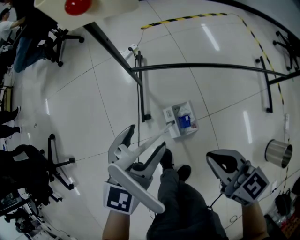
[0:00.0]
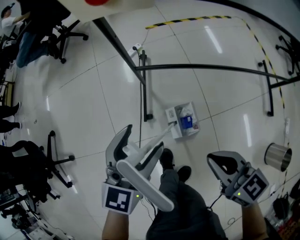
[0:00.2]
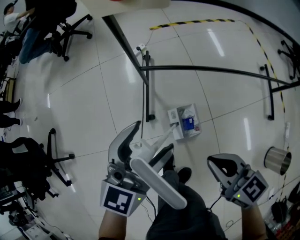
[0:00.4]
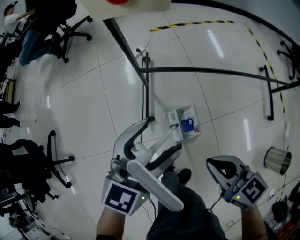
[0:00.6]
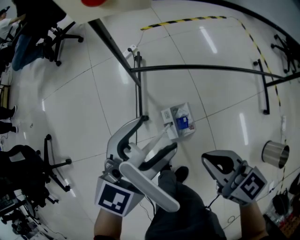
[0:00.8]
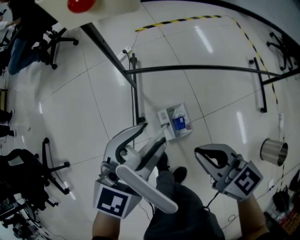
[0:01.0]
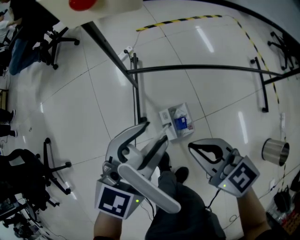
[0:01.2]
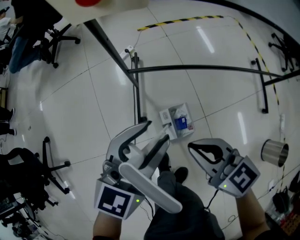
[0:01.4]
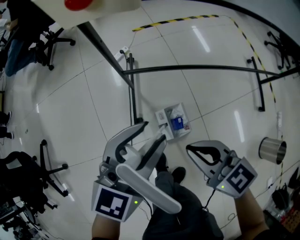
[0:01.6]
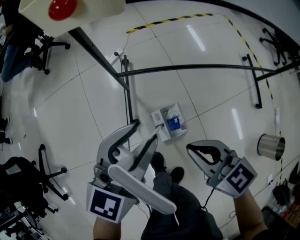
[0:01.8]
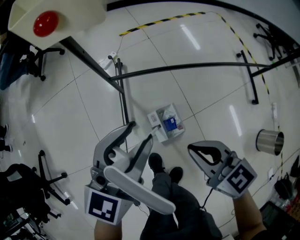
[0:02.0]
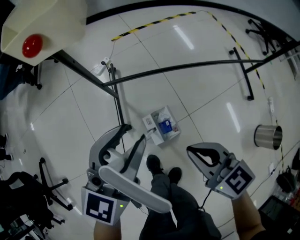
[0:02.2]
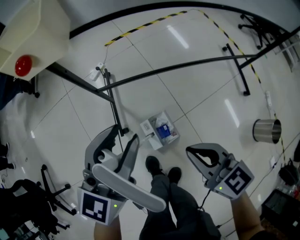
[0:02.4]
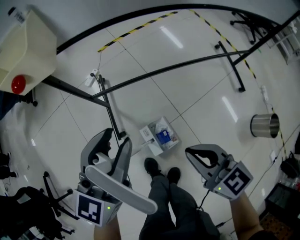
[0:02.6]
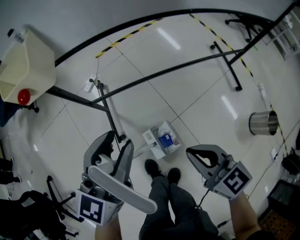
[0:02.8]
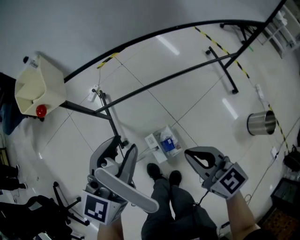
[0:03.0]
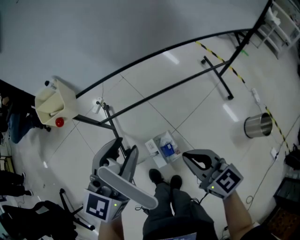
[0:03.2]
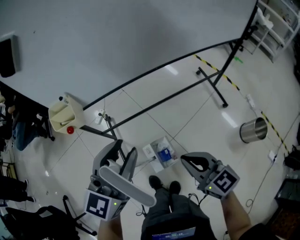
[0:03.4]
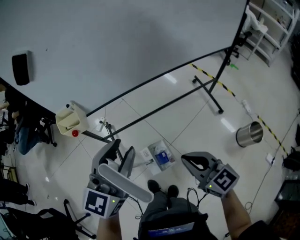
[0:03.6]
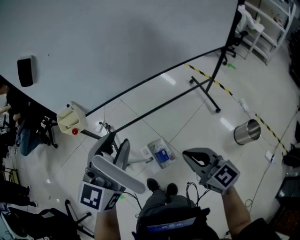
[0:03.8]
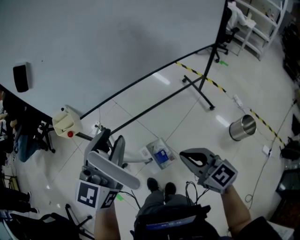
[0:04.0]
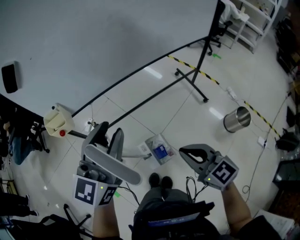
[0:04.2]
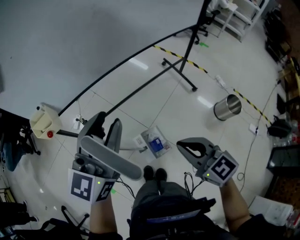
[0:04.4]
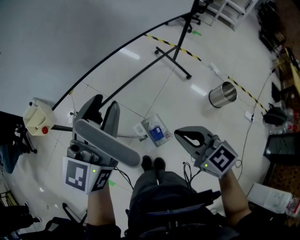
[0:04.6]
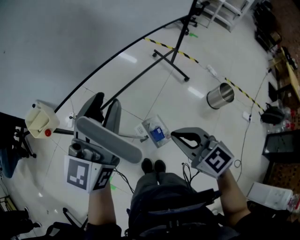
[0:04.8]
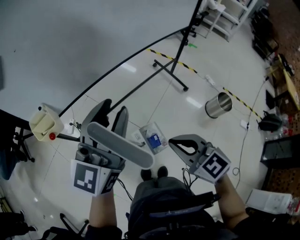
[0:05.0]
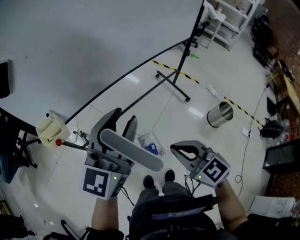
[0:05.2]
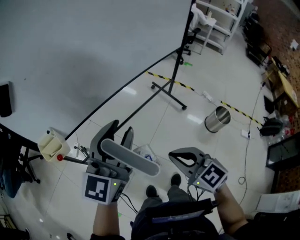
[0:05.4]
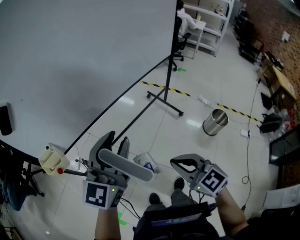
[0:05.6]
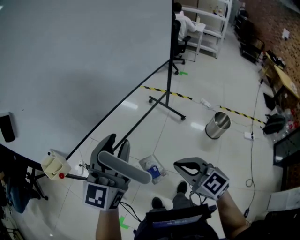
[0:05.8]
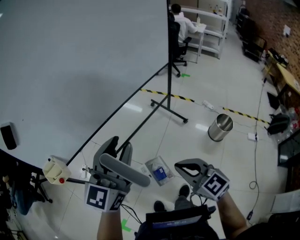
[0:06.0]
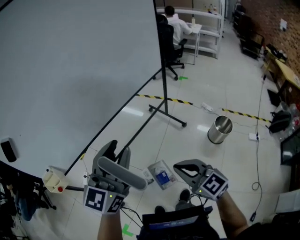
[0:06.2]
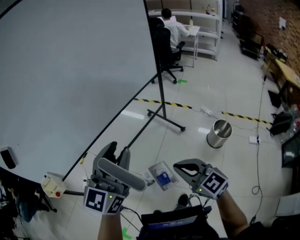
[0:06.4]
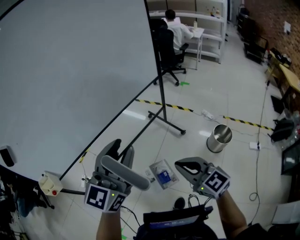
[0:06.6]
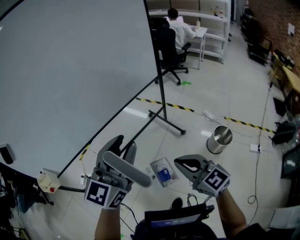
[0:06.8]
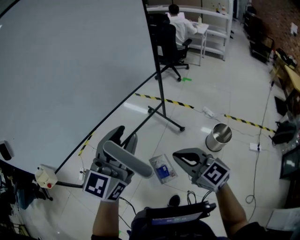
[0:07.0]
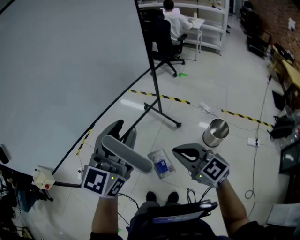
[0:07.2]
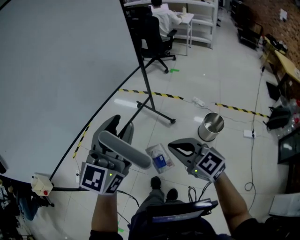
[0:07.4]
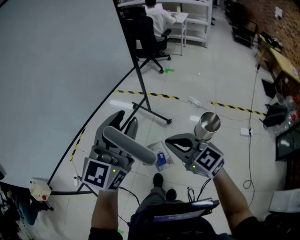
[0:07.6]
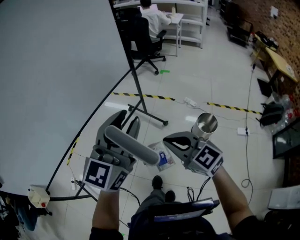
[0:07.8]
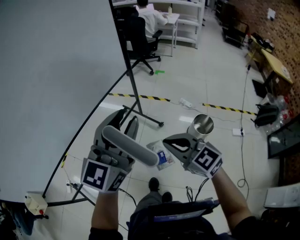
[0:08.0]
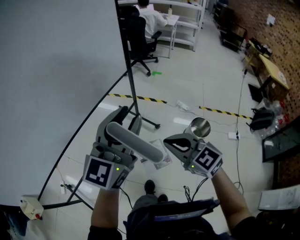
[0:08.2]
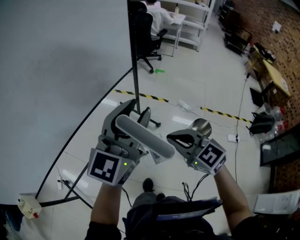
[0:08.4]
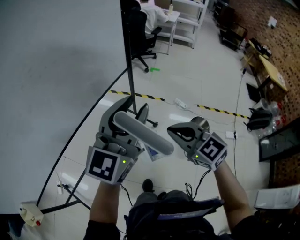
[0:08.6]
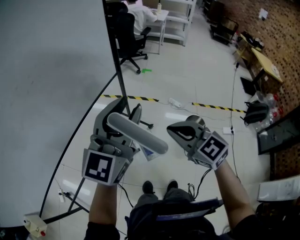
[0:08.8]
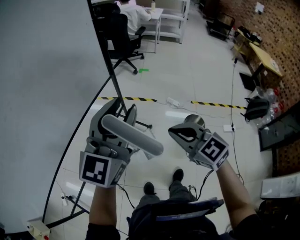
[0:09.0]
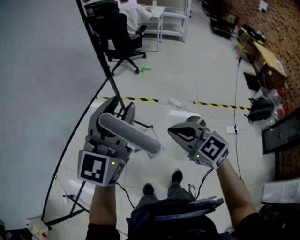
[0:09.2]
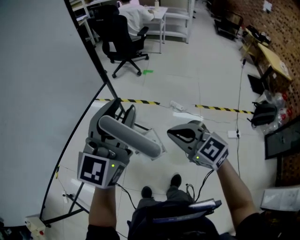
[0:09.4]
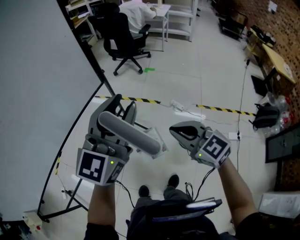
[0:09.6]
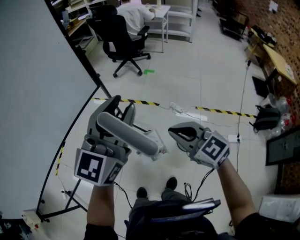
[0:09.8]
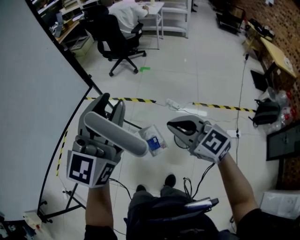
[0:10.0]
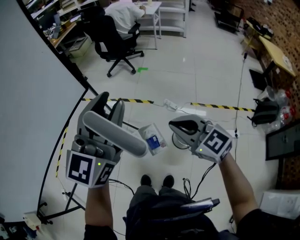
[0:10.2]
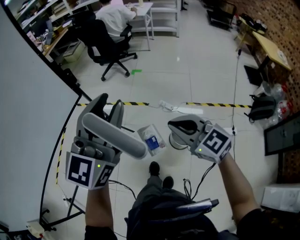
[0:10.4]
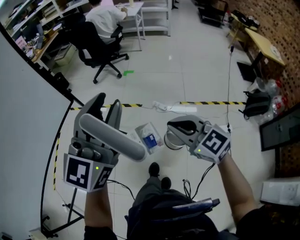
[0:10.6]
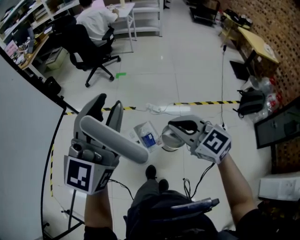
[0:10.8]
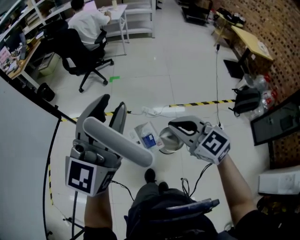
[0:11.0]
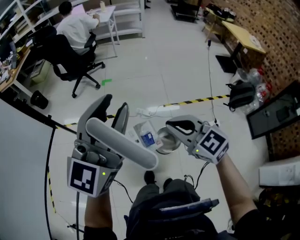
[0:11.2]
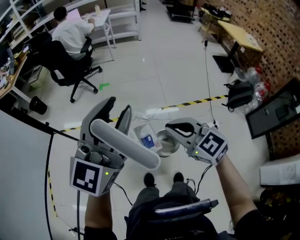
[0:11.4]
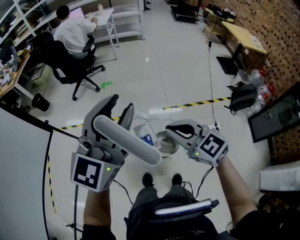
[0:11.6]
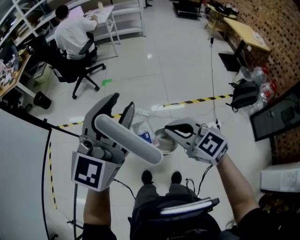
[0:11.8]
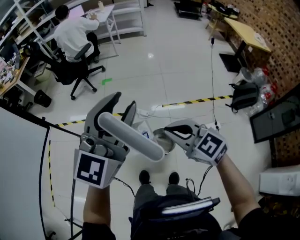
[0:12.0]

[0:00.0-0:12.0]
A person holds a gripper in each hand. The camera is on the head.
0:00.0 to 0:01.6: The right gripper shifts by about 5 cm; the left gripper closes its fingers.
0:01.6 to 0:03.0: The left gripper shifts roughly 15 cm upward and to the right; the right gripper travels to the right and upward by some 15 cm, and swivels approximately 20 degrees.
0:03.0 to 0:04.4: The grippers both shift upward and to the right by about 25 cm.
0:04.4 to 0:06.0: The right gripper travels to the right by approximately 5 cm, while the left gripper goes approximately 10 cm to the right and upward.
0:06.0 to 0:07.6: The right gripper goes some 25 cm to the right and forward. Meanwhile the left gripper shifts approximately 30 cm to the right.
0:07.6 to 0:09.0: Both grippers travel together forward, about 15 cm.
0:09.0 to 0:10.4: The two grippers go approximately 25 cm to the right.
0:10.4 to 0:12.0: The right gripper travels to the right by approximately 15 cm. The left gripper travels to the right and forward by some 25 cm.

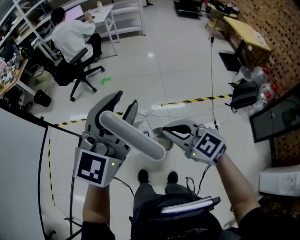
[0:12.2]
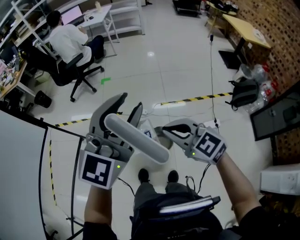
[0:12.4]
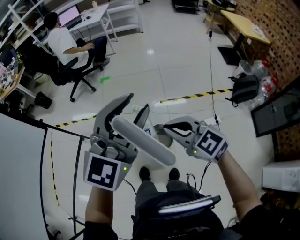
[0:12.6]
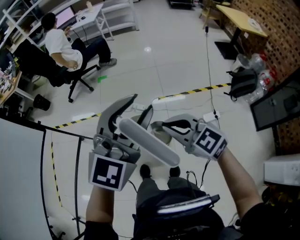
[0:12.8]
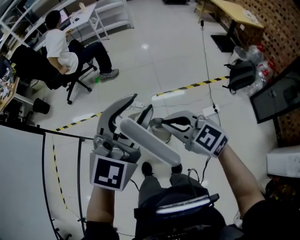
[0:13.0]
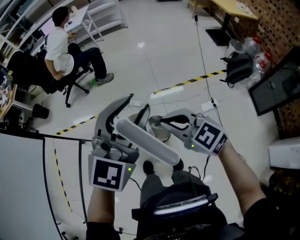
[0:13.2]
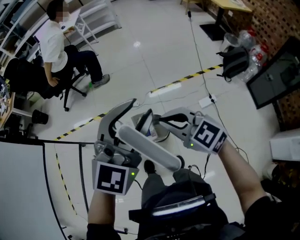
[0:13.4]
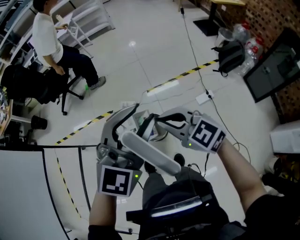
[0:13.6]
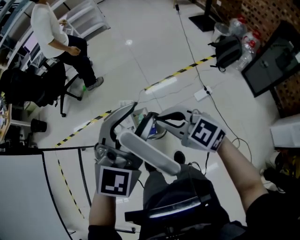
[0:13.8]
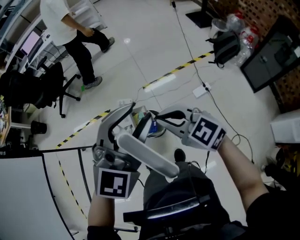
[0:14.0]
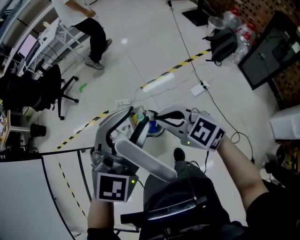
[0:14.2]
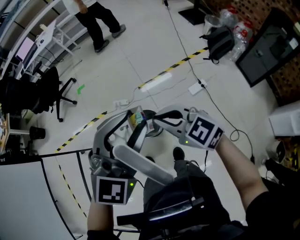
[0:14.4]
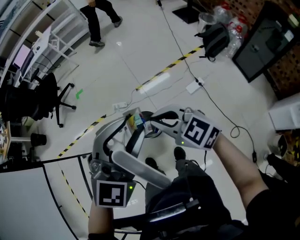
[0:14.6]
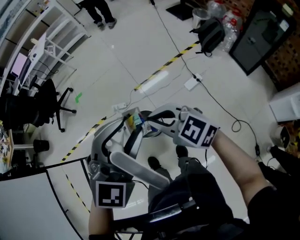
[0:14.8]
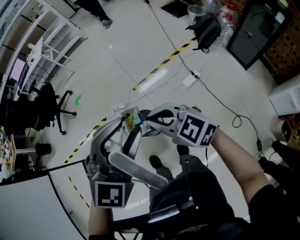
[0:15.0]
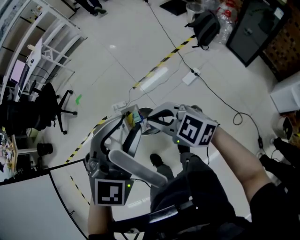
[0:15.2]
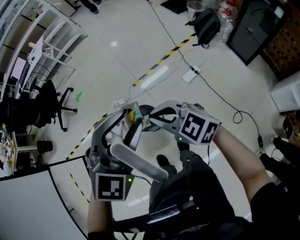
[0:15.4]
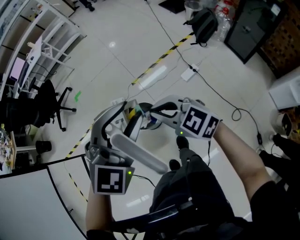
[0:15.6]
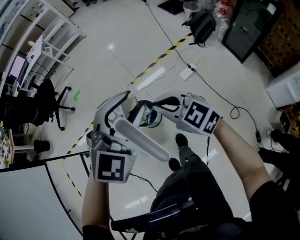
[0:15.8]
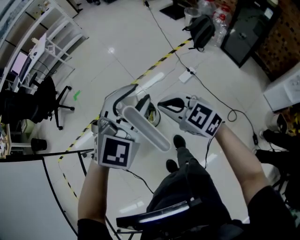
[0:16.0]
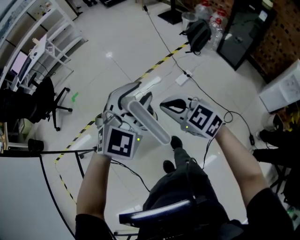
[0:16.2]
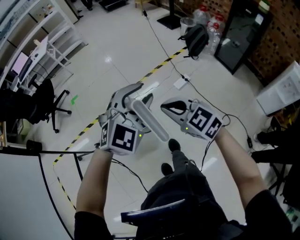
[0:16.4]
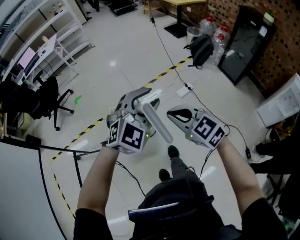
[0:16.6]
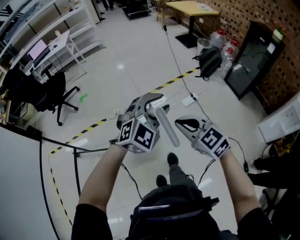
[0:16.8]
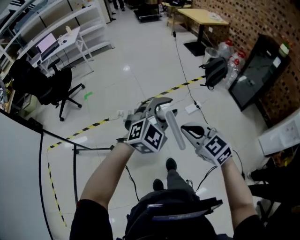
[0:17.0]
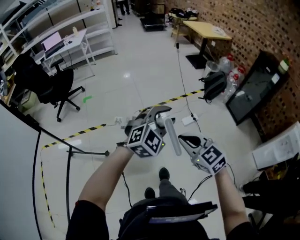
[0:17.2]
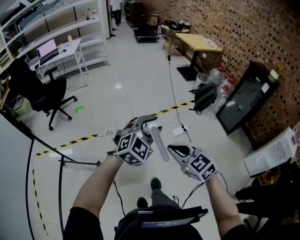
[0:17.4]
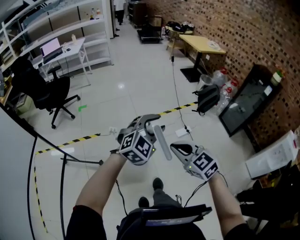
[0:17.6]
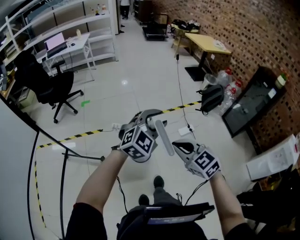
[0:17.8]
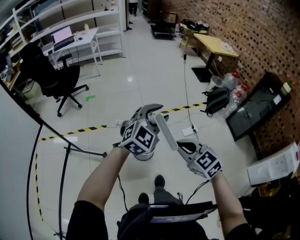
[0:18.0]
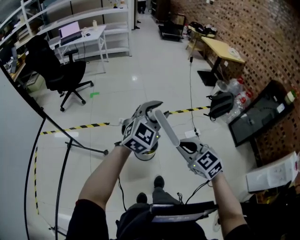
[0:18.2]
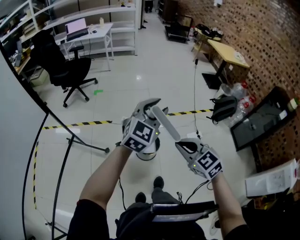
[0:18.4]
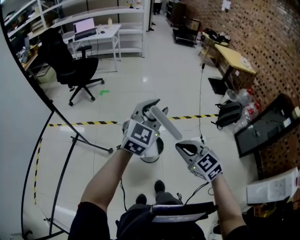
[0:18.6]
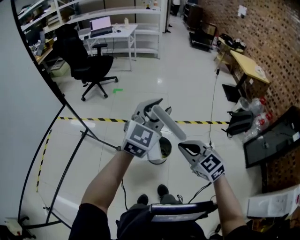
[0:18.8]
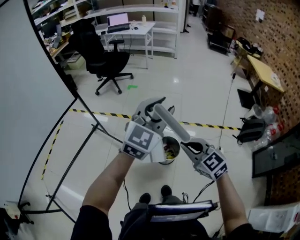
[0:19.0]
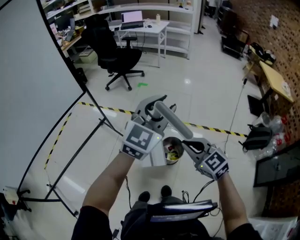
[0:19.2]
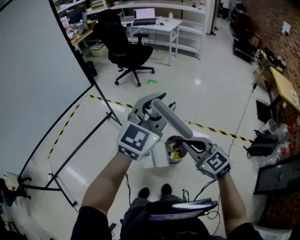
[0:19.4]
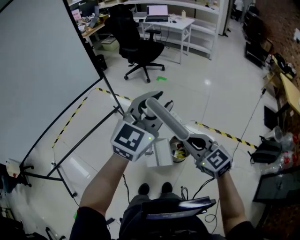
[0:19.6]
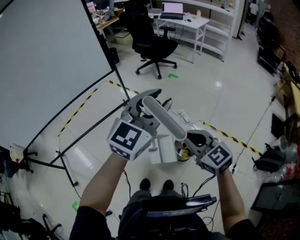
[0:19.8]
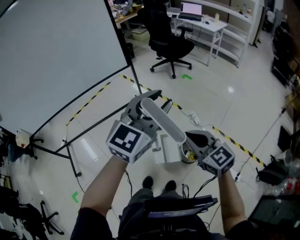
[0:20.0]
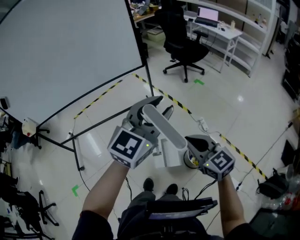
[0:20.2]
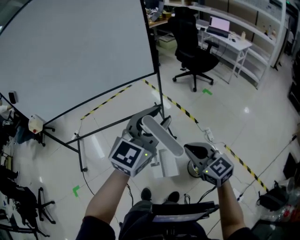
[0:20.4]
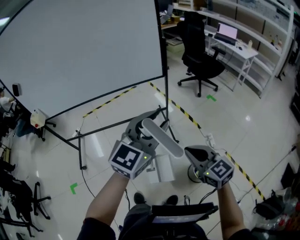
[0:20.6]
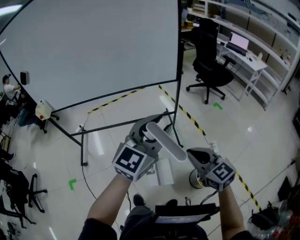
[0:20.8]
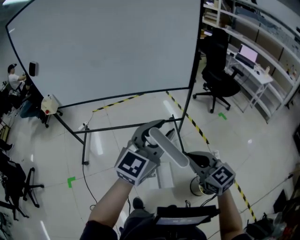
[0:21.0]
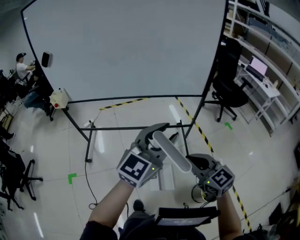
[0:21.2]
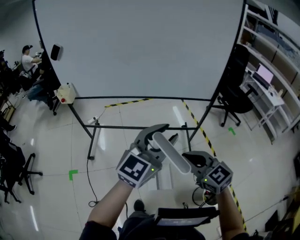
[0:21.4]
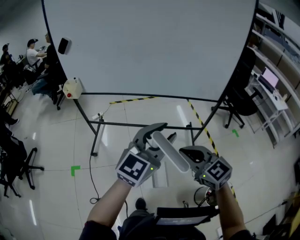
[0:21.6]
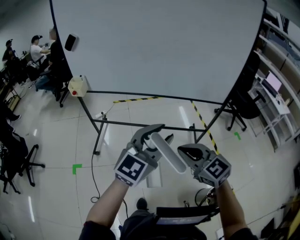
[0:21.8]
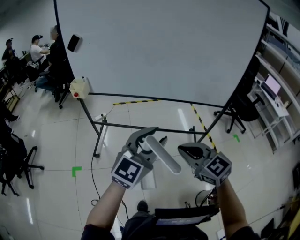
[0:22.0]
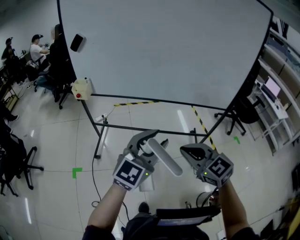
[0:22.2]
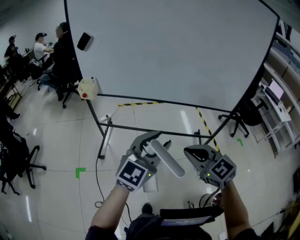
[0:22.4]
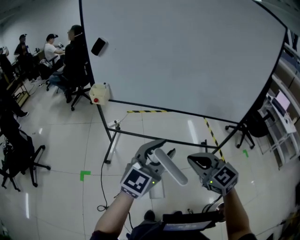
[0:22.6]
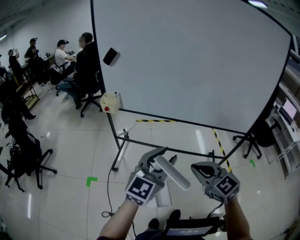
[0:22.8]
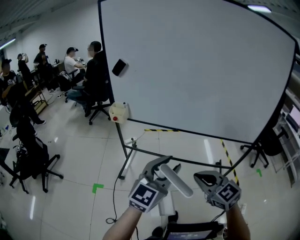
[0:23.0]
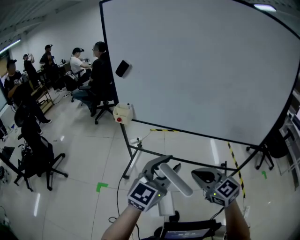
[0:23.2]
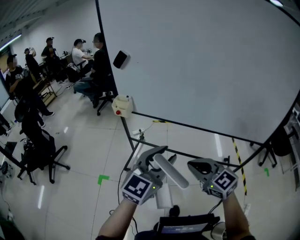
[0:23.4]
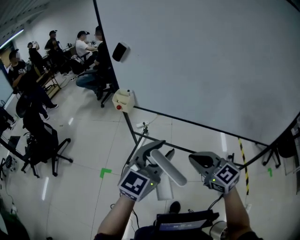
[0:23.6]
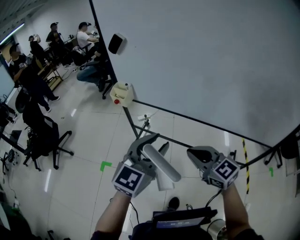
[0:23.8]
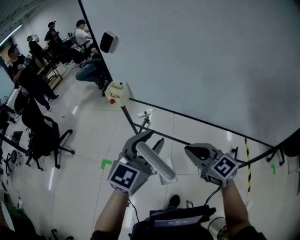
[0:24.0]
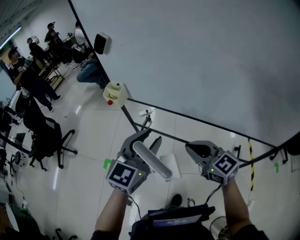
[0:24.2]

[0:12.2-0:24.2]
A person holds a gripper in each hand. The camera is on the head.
0:12.2 to 0:13.8: The right gripper heads to the right, covering some 10 cm; the left gripper is displaced to the right and backward by about 20 cm, and changes its angle by about 30 degrees.
0:13.8 to 0:15.2: The right gripper changes place by approximately 5 cm; the left gripper travels backward by roughly 5 cm.
0:15.2 to 0:16.6: The right gripper shifts some 15 cm backward. Meanwhile the left gripper heads backward, covering about 10 cm.
0:16.6 to 0:18.2: The left gripper moves to the left and forward, about 15 cm, and changes its angle by approximately 20 degrees, while the right gripper heads to the left, covering some 5 cm.
0:18.2 to 0:19.8: The right gripper moves about 15 cm, and changes its angle by some 40 degrees. The left gripper changes place by approximately 20 cm, and swivels some 50 degrees.
0:19.8 to 0:21.2: The right gripper changes place by about 35 cm, and rotates approximately 30 degrees, while the left gripper changes place by some 40 cm, and rotates about 30 degrees.
0:21.2 to 0:22.6: The two grippers go some 25 cm to the left. The right gripper swivels about 20 degrees.
0:22.6 to 0:24.2: The grippers both shift forward by some 20 cm. The left gripper swivels approximately 30 degrees. The right gripper turns by about 30 degrees.
